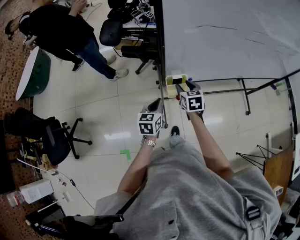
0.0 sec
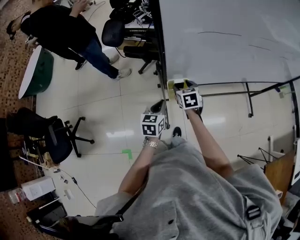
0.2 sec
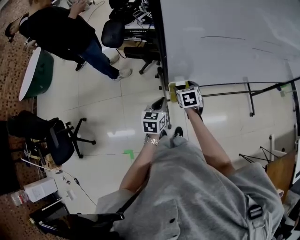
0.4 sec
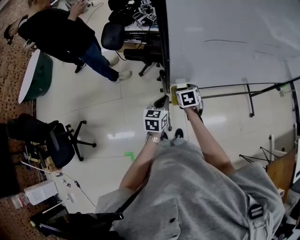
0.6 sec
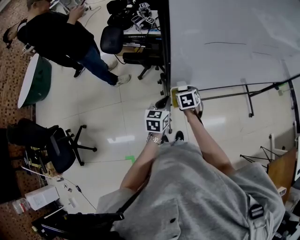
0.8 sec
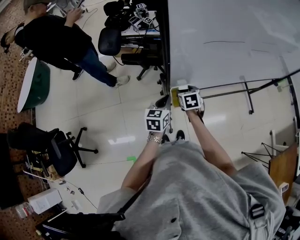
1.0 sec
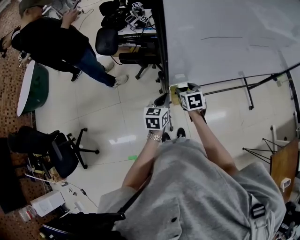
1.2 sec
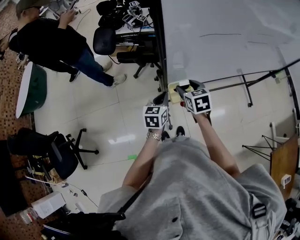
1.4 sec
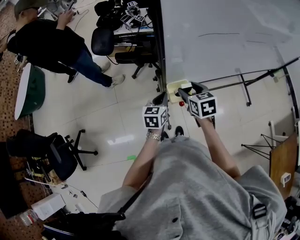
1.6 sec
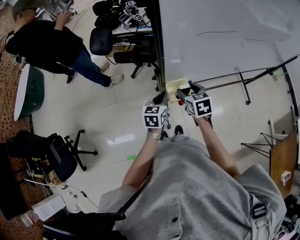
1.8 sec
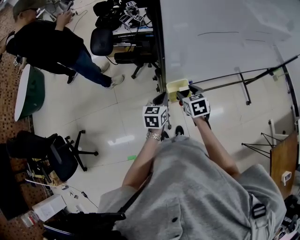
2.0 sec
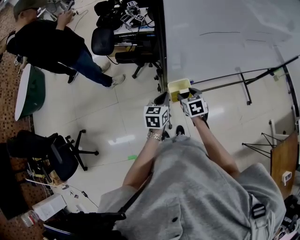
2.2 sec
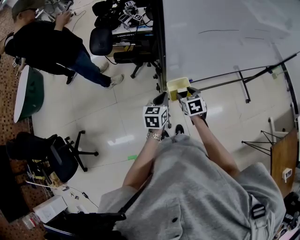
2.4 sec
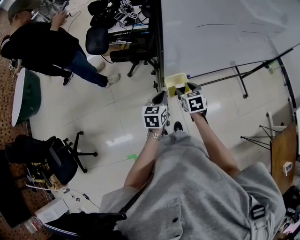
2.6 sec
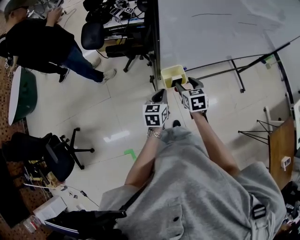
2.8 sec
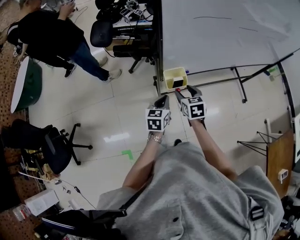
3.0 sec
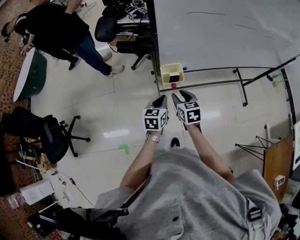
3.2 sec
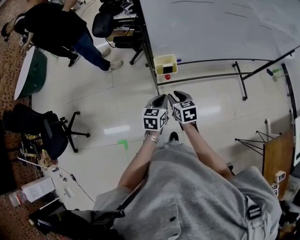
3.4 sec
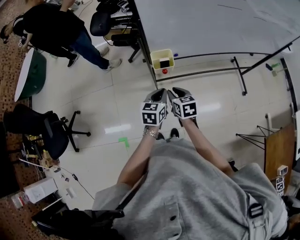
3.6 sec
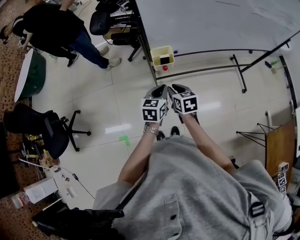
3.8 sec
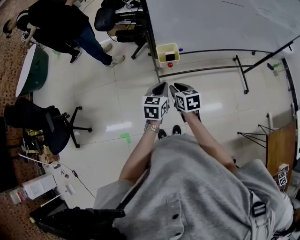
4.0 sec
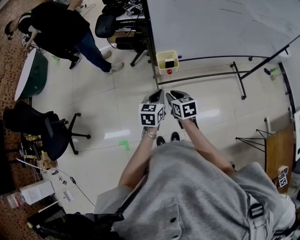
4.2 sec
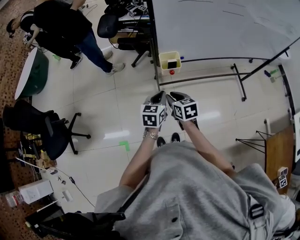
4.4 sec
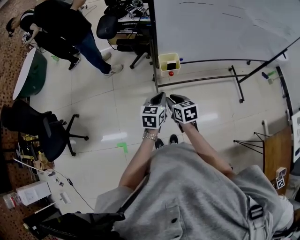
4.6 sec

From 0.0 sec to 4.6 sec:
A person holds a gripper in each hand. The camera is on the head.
From 0.0 sec to 1.6 sec: The right gripper shifts roughly 5 cm upward, while the left gripper goes some 10 cm forward.
From 1.6 sec to 3.0 sec: The left gripper is displaced backward by roughly 10 cm, while the right gripper is displaced backward and downward by roughly 10 cm.
From 3.0 sec to 4.6 sec: Both grippers travel together backward, approximately 15 cm. The right gripper closes its fingers.

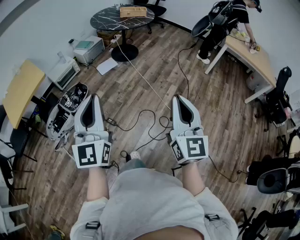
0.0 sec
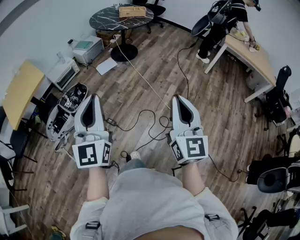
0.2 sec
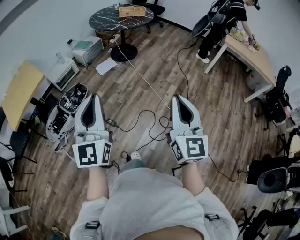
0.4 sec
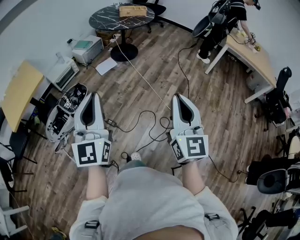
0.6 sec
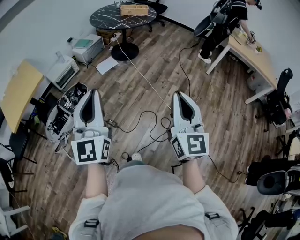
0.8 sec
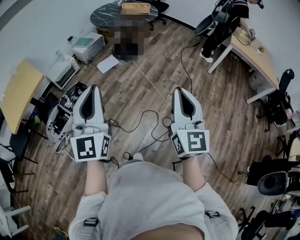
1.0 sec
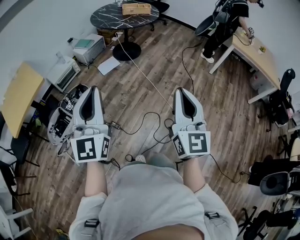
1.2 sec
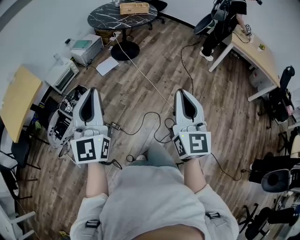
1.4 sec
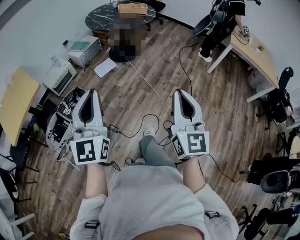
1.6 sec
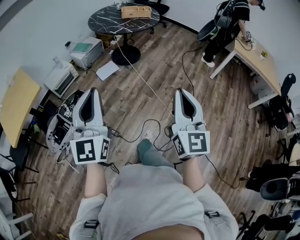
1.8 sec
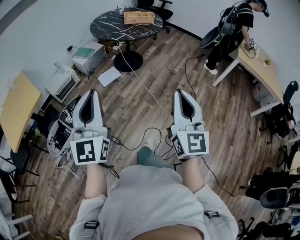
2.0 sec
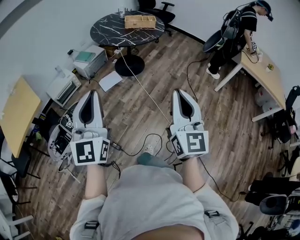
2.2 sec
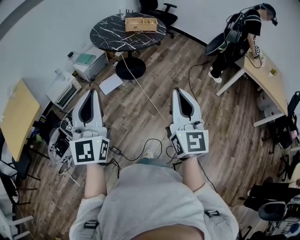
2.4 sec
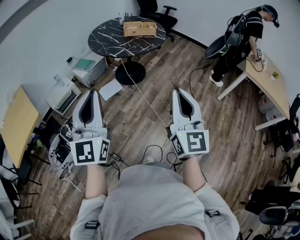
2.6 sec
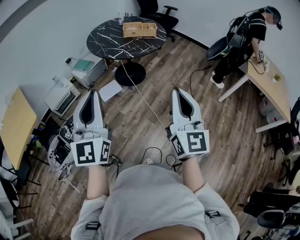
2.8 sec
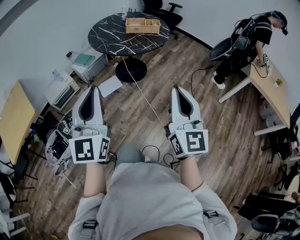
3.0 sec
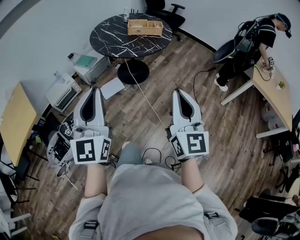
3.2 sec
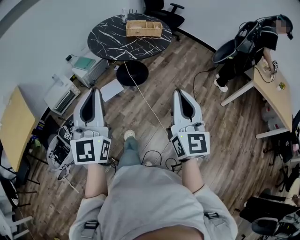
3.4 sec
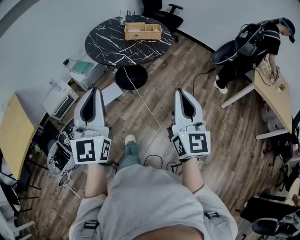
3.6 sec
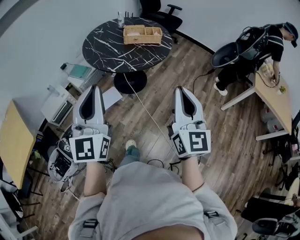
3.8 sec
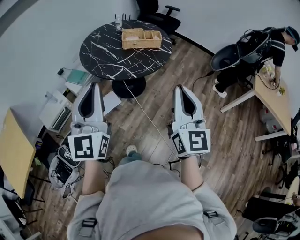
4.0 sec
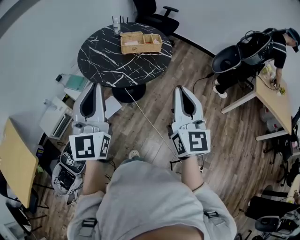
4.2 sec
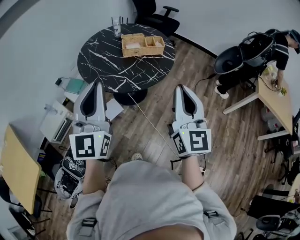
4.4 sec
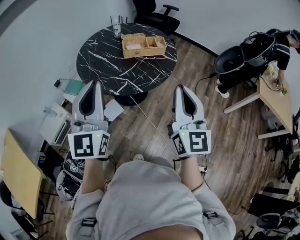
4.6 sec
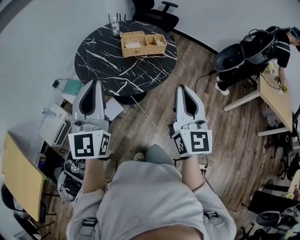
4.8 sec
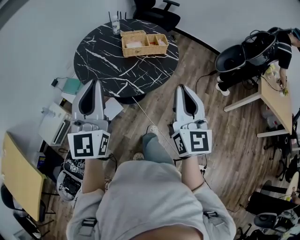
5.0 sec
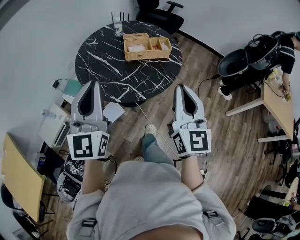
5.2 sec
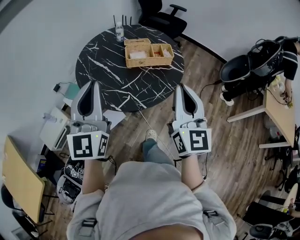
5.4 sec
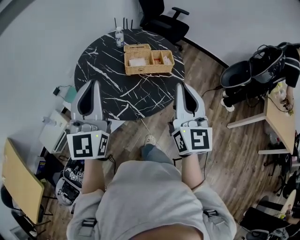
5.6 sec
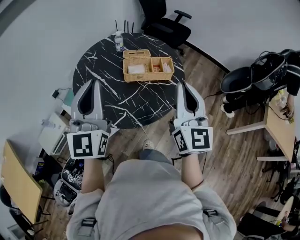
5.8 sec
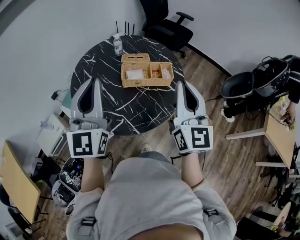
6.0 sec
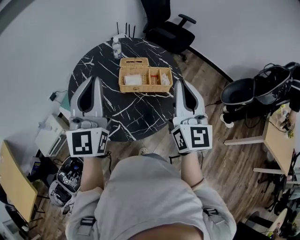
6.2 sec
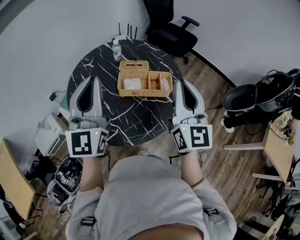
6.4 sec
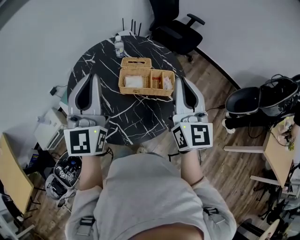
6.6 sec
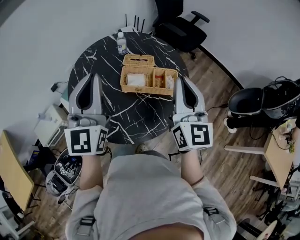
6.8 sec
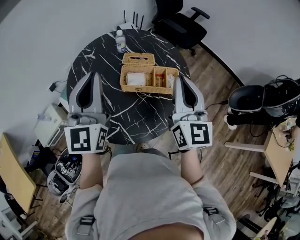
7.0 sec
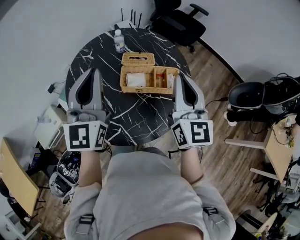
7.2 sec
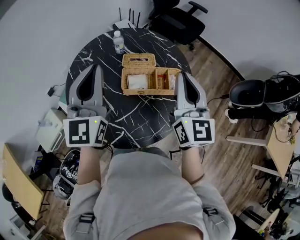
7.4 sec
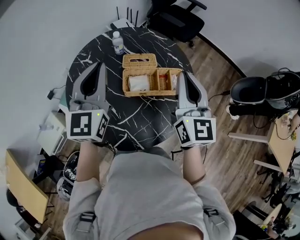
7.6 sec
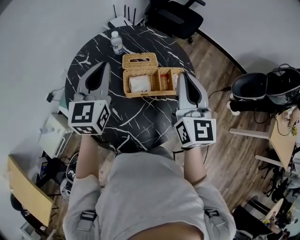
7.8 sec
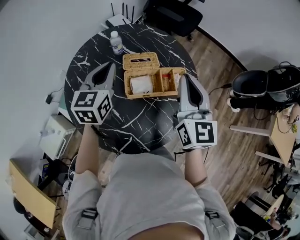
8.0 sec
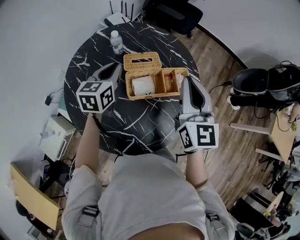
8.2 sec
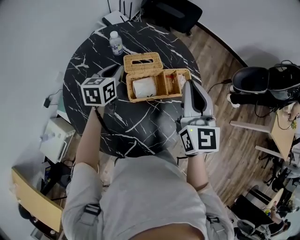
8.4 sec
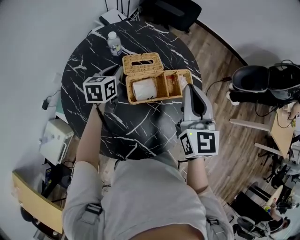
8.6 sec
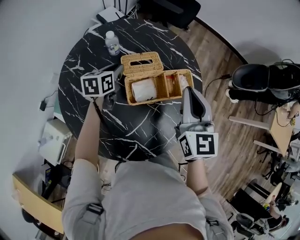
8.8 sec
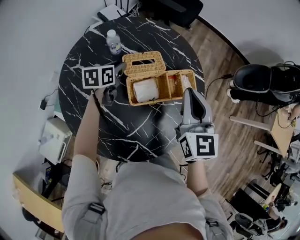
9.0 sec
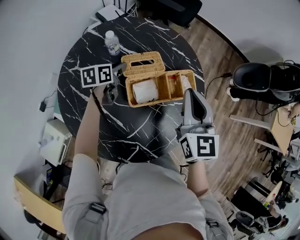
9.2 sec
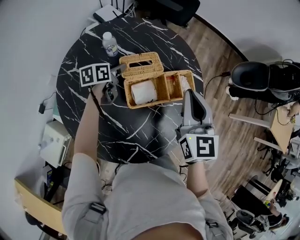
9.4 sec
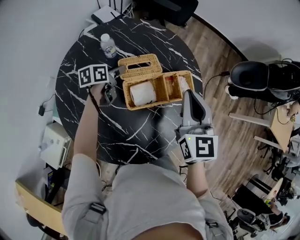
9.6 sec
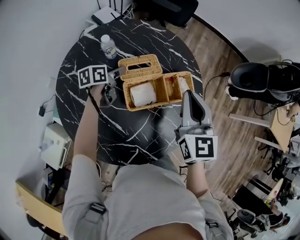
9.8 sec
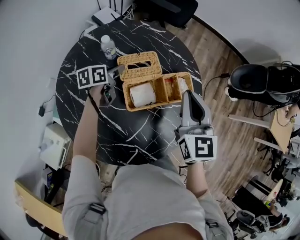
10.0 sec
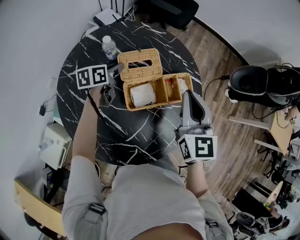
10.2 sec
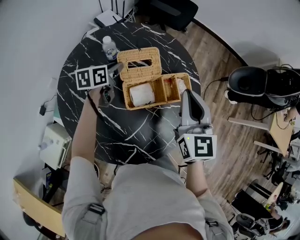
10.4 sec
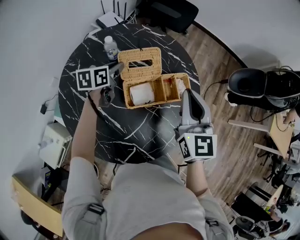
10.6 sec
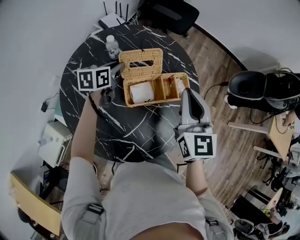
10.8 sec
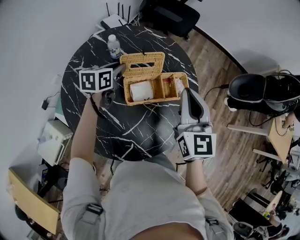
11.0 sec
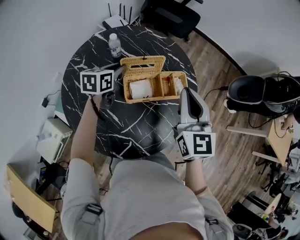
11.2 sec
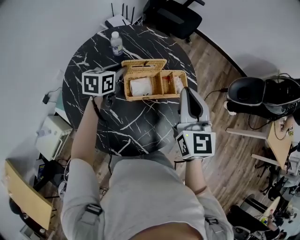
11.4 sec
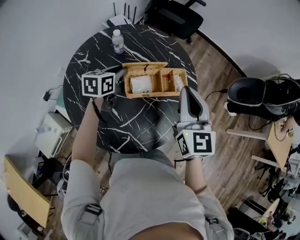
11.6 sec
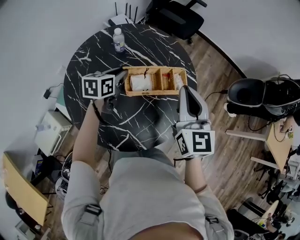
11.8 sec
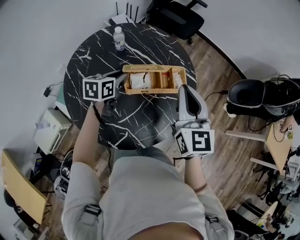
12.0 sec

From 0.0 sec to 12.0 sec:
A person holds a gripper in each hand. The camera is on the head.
From 0.0 sec to 1.6 sec: Both grippers move forward, roughly 15 cm.
From 1.6 sec to 3.0 sec: Both grippers move forward, approximately 30 cm.
From 3.0 sec to 4.4 sec: The grippers both shift forward by some 35 cm.
From 4.4 sec to 6.0 sec: Both grippers move forward, about 30 cm.
From 6.0 sec to 7.6 sec: The two grippers go approximately 20 cm forward.
From 7.6 sec to 9.0 sec: The left gripper is displaced downward and forward by roughly 35 cm, points its fingers about 40 degrees further downward, and opens its fingers, while the right gripper travels downward by approximately 10 cm.
From 9.0 sec to 10.4 sec: The grippers move only a little.
From 10.4 sec to 12.0 sec: The right gripper is displaced backward by some 10 cm; the left gripper heads backward and to the right, covering about 15 cm.

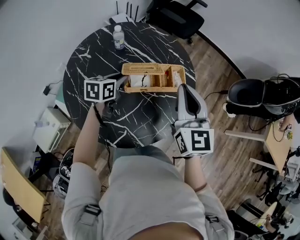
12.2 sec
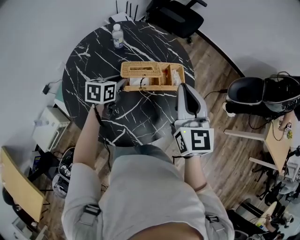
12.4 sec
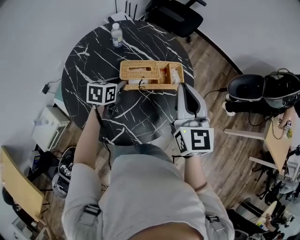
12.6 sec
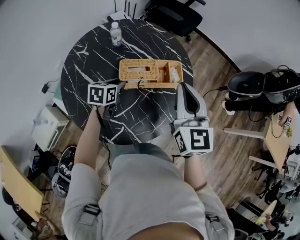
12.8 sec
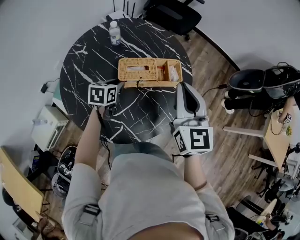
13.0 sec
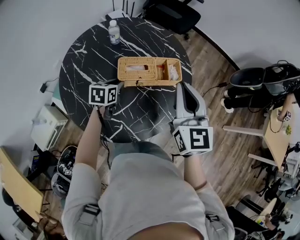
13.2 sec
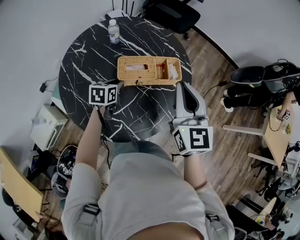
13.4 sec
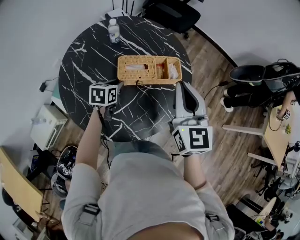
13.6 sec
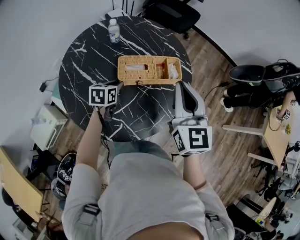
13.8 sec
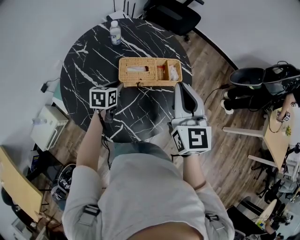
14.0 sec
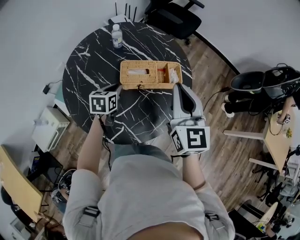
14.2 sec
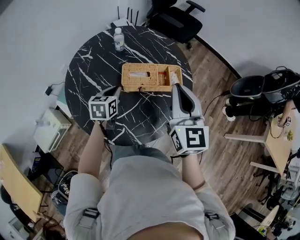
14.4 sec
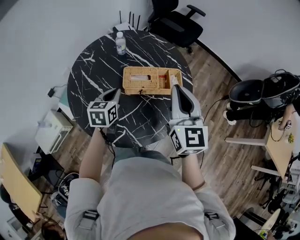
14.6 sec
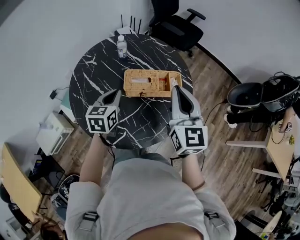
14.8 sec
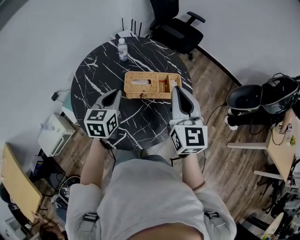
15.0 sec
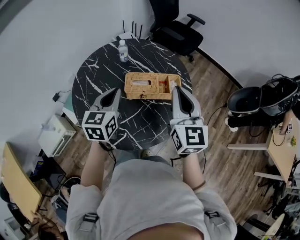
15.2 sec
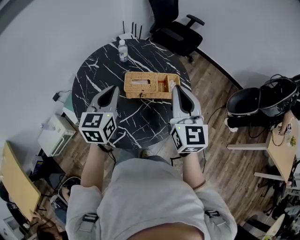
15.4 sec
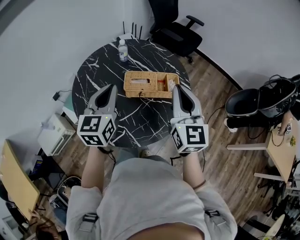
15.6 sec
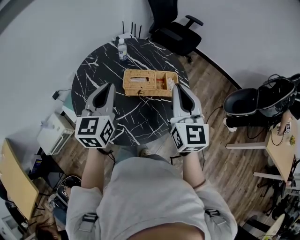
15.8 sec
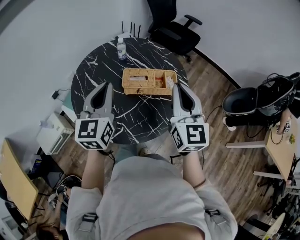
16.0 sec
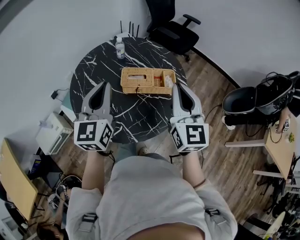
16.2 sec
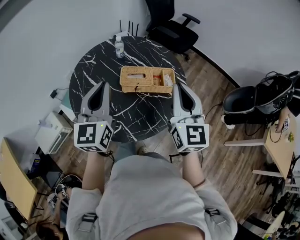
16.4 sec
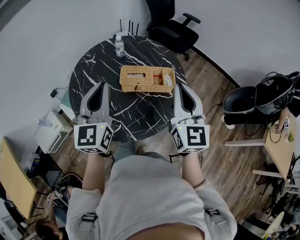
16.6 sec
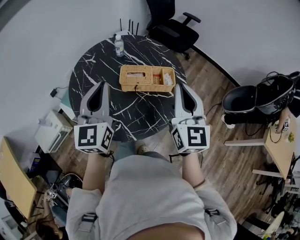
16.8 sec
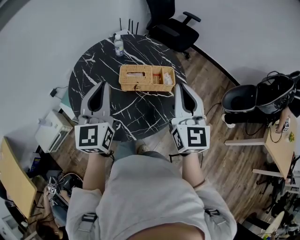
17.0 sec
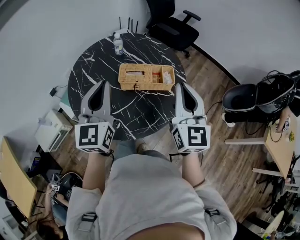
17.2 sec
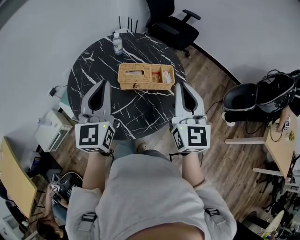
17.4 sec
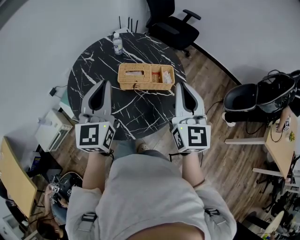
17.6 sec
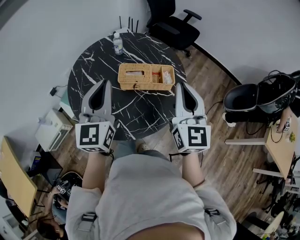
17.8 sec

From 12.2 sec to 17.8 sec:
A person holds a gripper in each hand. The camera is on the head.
From 12.2 sec to 13.6 sec: The left gripper is displaced downward by approximately 5 cm.
From 13.6 sec to 15.0 sec: The left gripper heads upward, covering approximately 15 cm, changes its angle by approximately 30 degrees, and closes up.
From 15.0 sec to 16.4 sec: The left gripper heads upward and backward, covering about 15 cm, and swivels about 30 degrees; the right gripper goes roughly 5 cm backward.
From 16.4 sec to 17.8 sec: The grippers make only small movements.

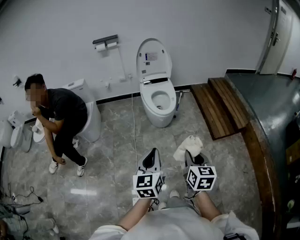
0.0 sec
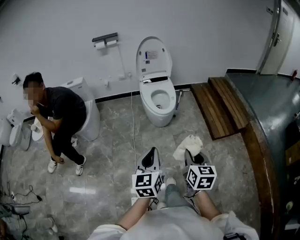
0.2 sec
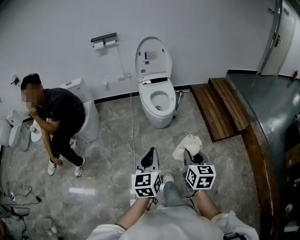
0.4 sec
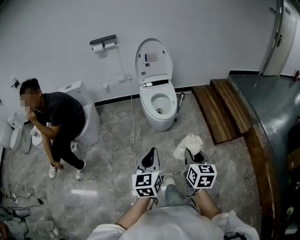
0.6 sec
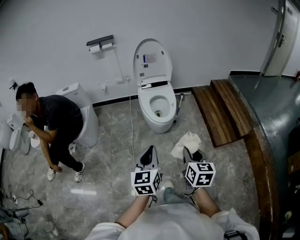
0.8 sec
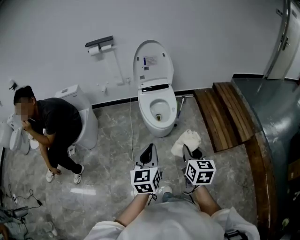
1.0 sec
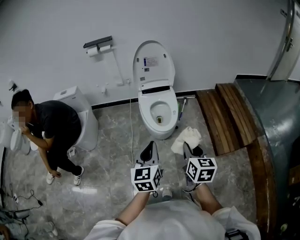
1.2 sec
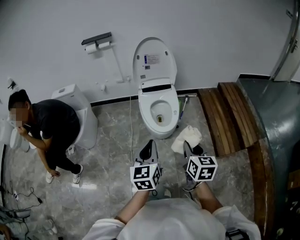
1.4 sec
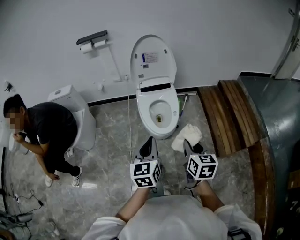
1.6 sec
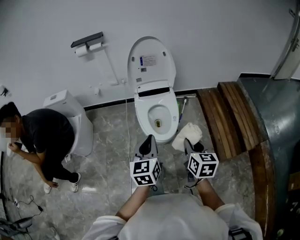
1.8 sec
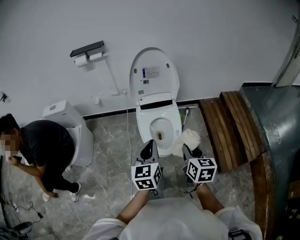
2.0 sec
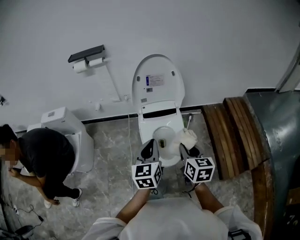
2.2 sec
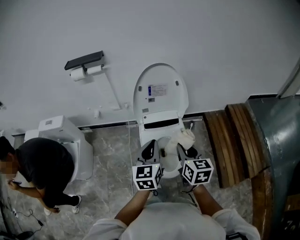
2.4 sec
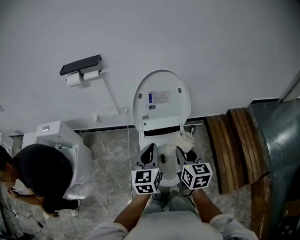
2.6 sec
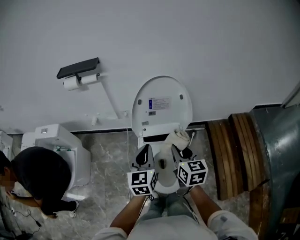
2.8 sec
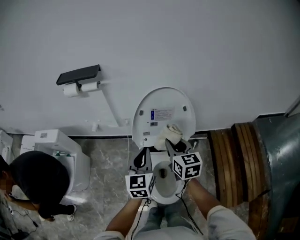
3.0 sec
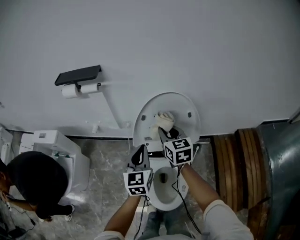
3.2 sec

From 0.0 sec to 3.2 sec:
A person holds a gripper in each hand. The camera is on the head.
From 0.0 sec to 1.6 sec: The grippers both shift forward by some 35 cm.
From 1.6 sec to 3.2 sec: The two grippers travel together, forward, some 60 cm. The right gripper swivels about 20 degrees.
